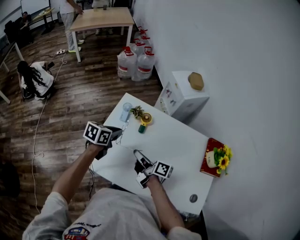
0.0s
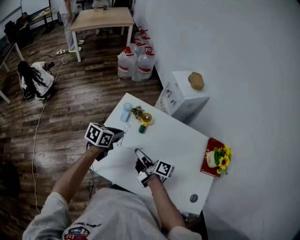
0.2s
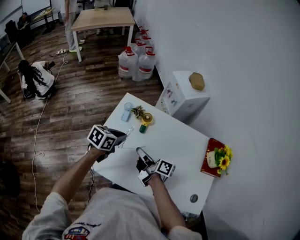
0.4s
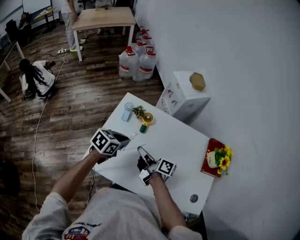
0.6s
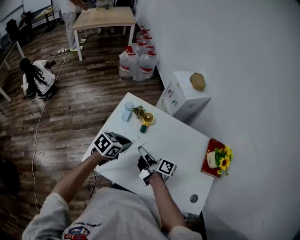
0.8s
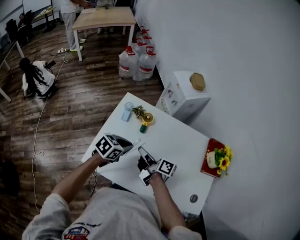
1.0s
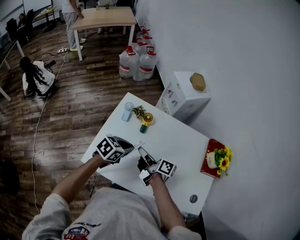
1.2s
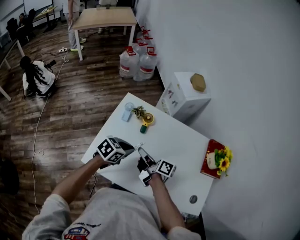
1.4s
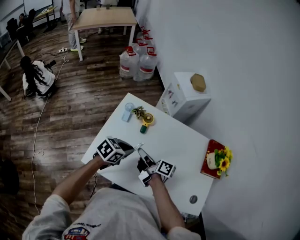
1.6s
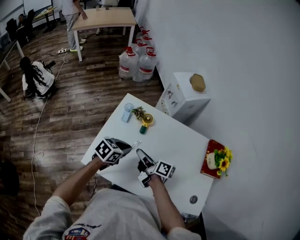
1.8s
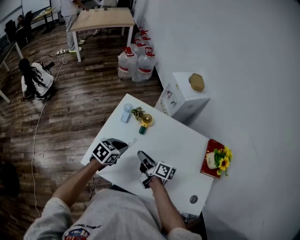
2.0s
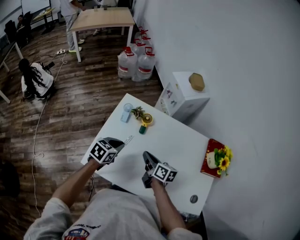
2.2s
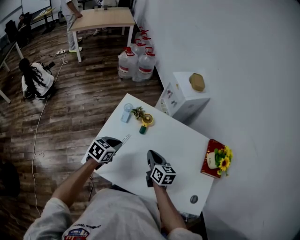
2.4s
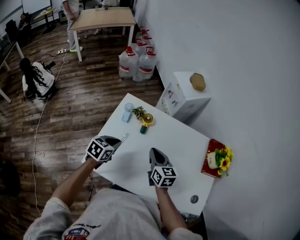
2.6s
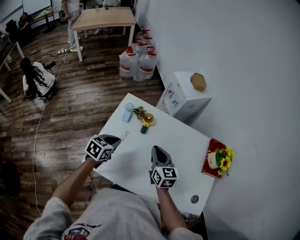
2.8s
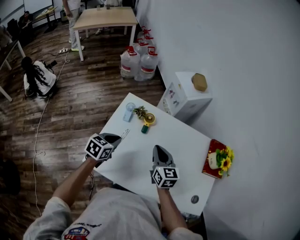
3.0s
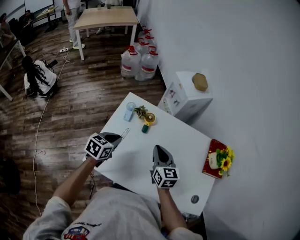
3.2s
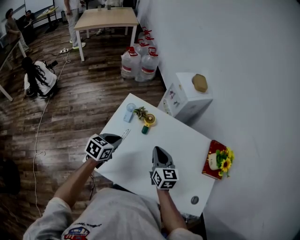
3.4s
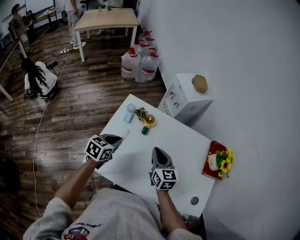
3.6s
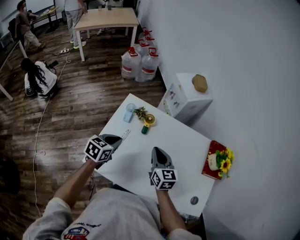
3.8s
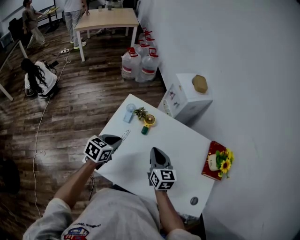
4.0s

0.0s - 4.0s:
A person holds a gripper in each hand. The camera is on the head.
0.0s - 1.4s: The left gripper travels to the right and backward by roughly 10 cm, and swivels some 20 degrees.
1.4s - 2.6s: The left gripper is displaced to the left by roughly 10 cm, while the right gripper moves some 5 cm, and rotates around the line of its fingers by roughly 50 degrees, counterclockwise from behind.
2.6s - 4.0s: The grippers move only a little.

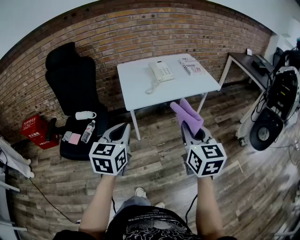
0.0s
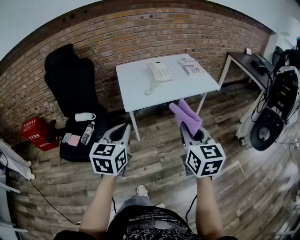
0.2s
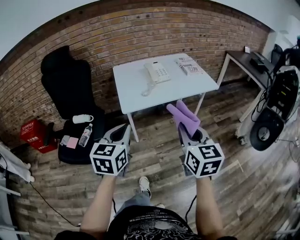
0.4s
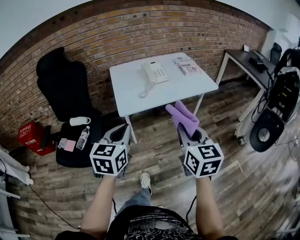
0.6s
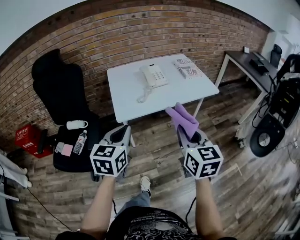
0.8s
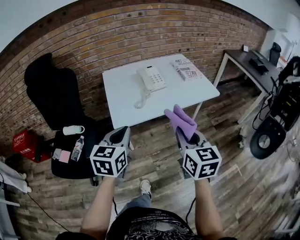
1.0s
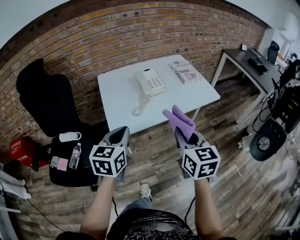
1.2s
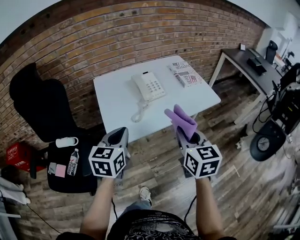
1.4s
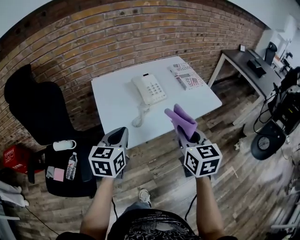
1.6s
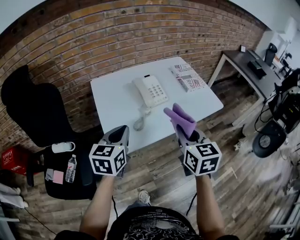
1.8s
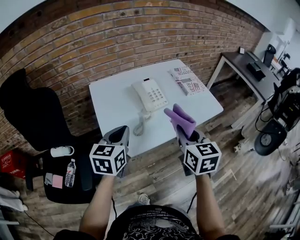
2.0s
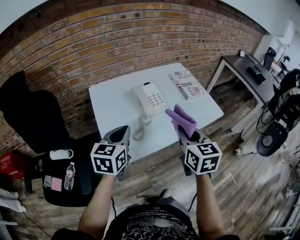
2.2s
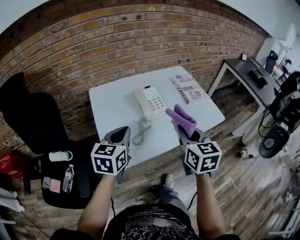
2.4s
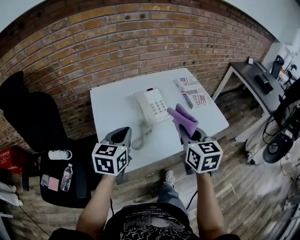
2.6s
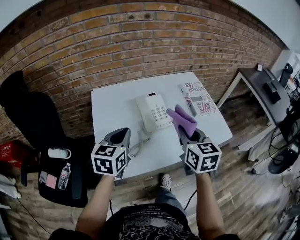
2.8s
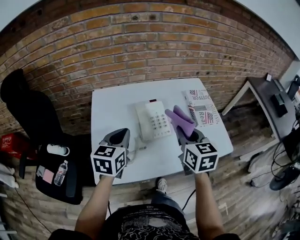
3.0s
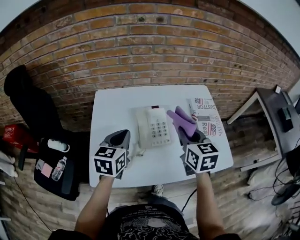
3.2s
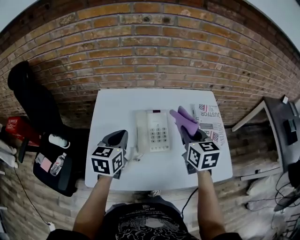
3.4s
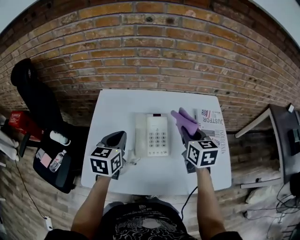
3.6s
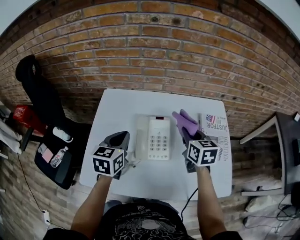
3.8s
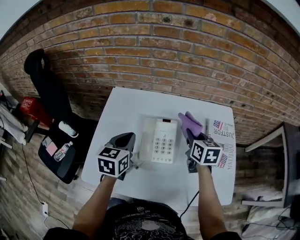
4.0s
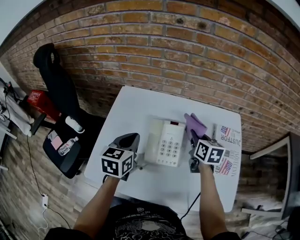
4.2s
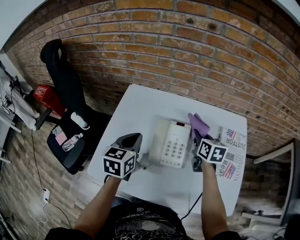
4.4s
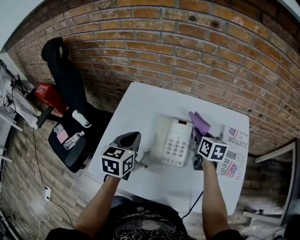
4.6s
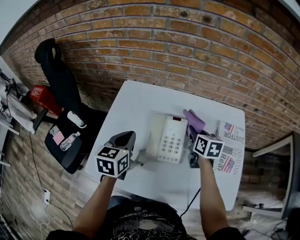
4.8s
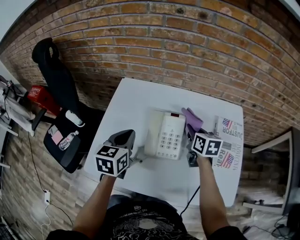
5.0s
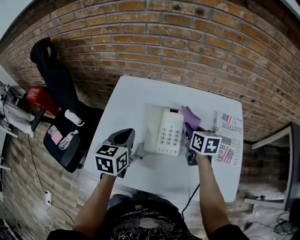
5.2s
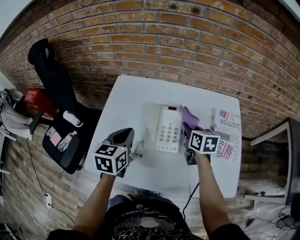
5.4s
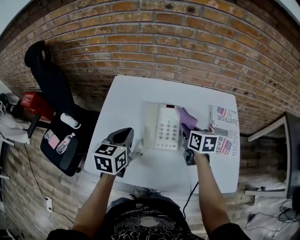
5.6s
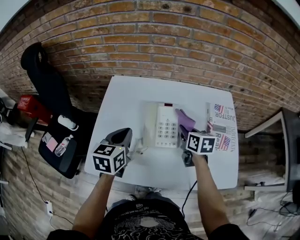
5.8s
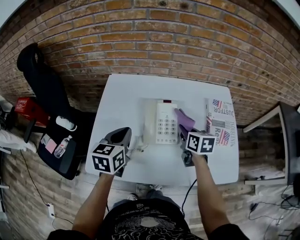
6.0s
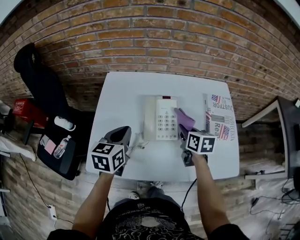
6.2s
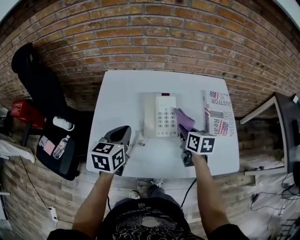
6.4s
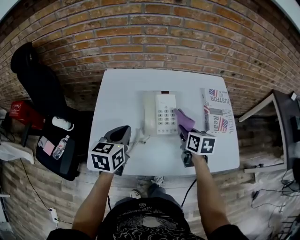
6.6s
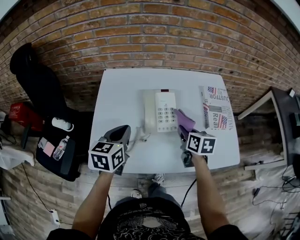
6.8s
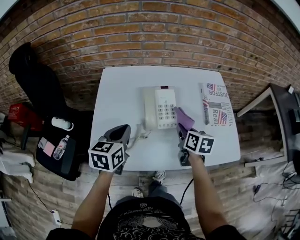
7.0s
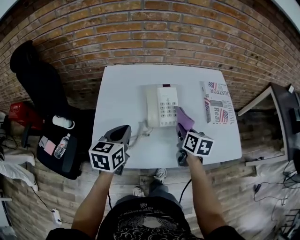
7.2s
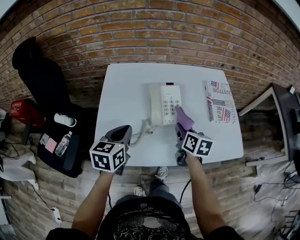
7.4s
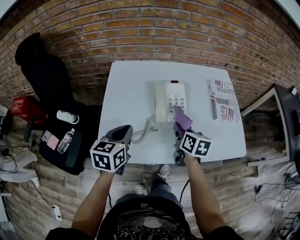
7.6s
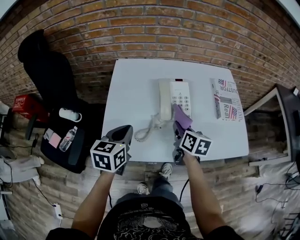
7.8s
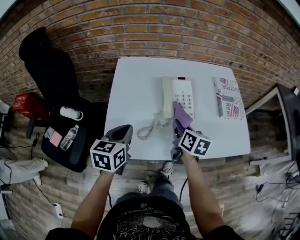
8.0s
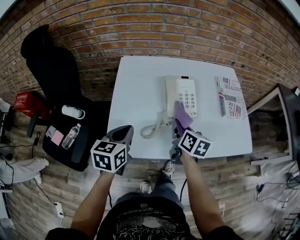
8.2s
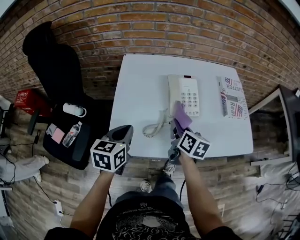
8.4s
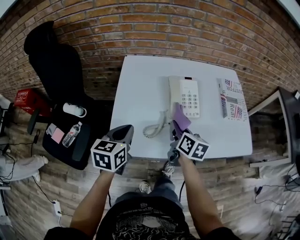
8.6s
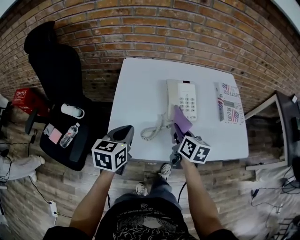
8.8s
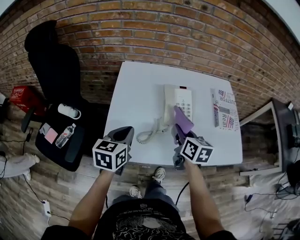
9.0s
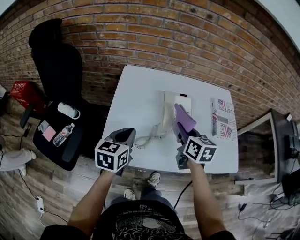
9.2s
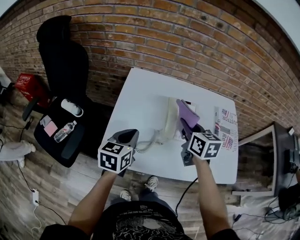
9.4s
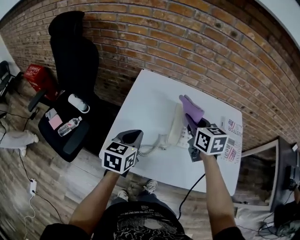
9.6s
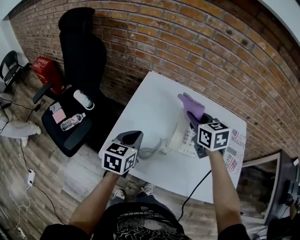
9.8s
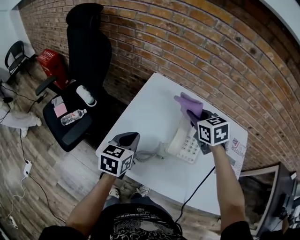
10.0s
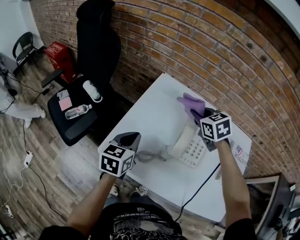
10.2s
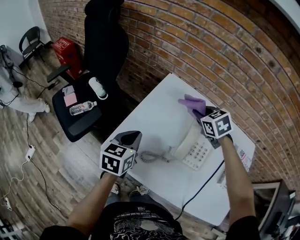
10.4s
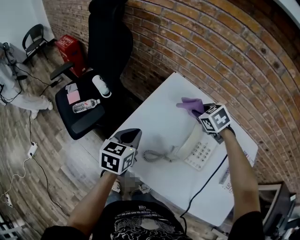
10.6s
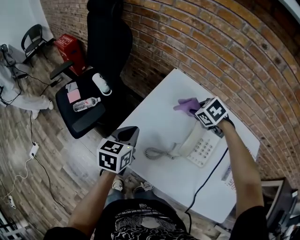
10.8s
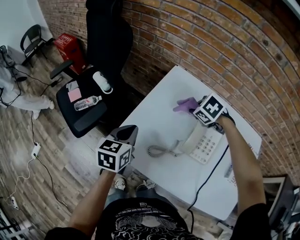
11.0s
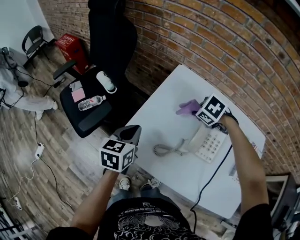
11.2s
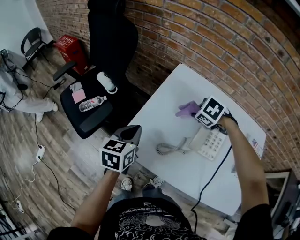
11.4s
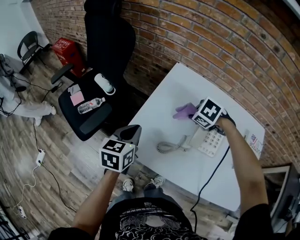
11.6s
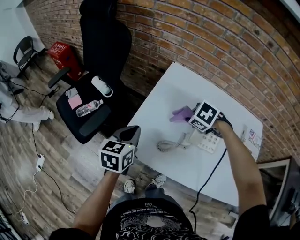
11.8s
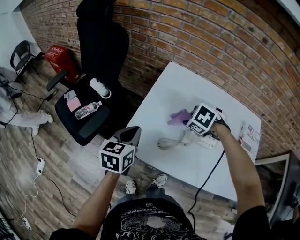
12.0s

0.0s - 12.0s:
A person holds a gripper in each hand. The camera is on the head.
0.0s - 1.6s: Both grippers move forward, roughly 30 cm.
1.6s - 3.0s: The two grippers go about 25 cm forward.
3.0s - 4.4s: The left gripper goes roughly 5 cm forward, and turns by about 20 degrees, while the right gripper travels forward and downward by approximately 25 cm, and rotates some 20 degrees.
4.4s - 6.0s: The right gripper is displaced backward by some 10 cm.
6.0s - 7.6s: The right gripper is displaced backward and to the left by approximately 10 cm. Meanwhile the left gripper travels backward by roughly 10 cm.
7.6s - 9.0s: The right gripper changes place by some 5 cm.
9.0s - 10.4s: The right gripper shifts by some 25 cm, and rotates around the line of its fingers by roughly 60 degrees, counterclockwise from behind, while the left gripper changes its angle by some 30 degrees.
10.4s - 12.0s: The left gripper changes place by about 10 cm. Meanwhile the right gripper shifts by about 15 cm, and swivels approximately 30 degrees.

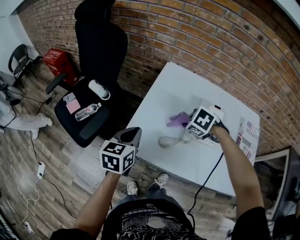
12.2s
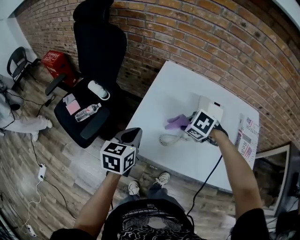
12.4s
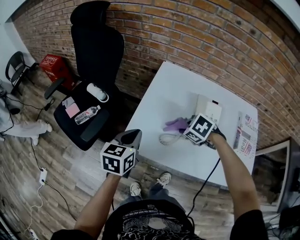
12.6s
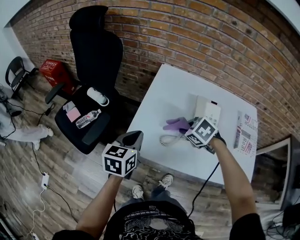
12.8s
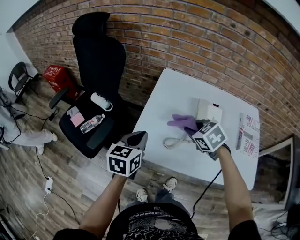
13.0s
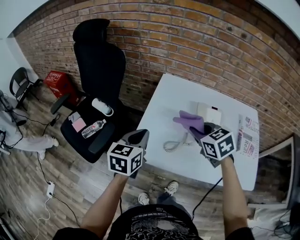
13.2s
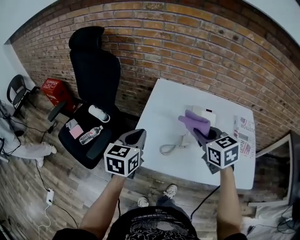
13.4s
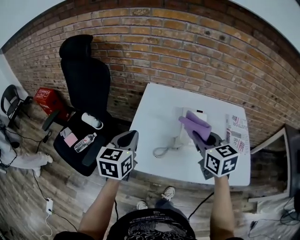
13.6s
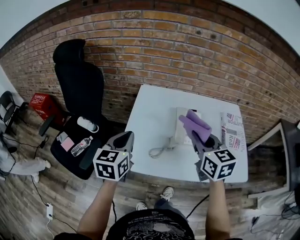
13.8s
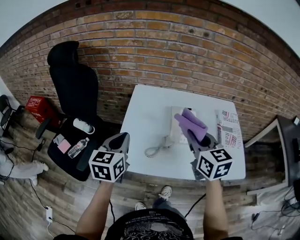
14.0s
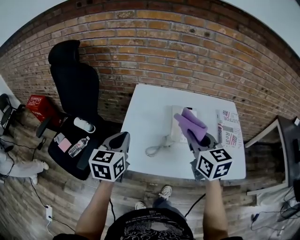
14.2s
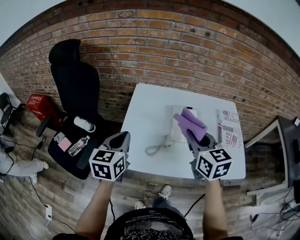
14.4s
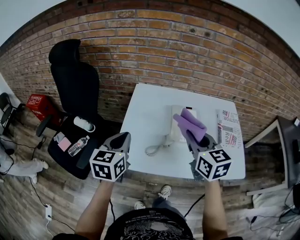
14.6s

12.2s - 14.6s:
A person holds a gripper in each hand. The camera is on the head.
12.2s - 13.4s: The right gripper travels upward by about 15 cm, and tilts its fingers roughly 40 degrees upward; the left gripper is displaced upward by about 10 cm.
13.4s - 14.6s: The right gripper ends up approximately 10 cm from where it was, and changes its angle by about 20 degrees.

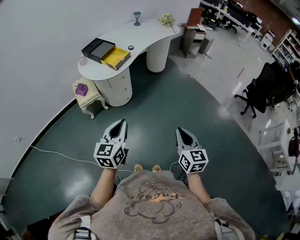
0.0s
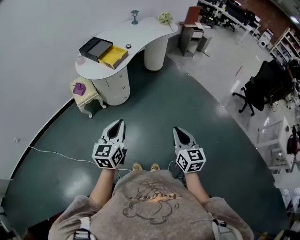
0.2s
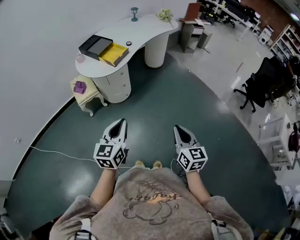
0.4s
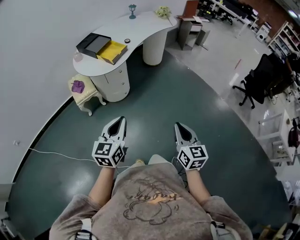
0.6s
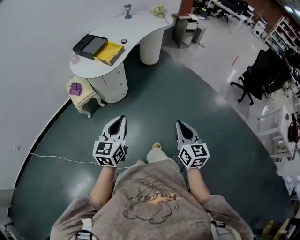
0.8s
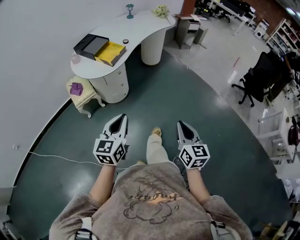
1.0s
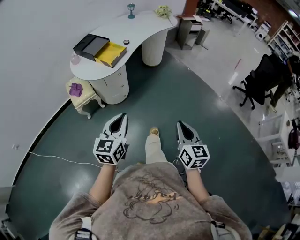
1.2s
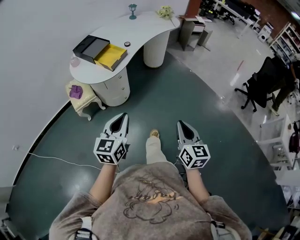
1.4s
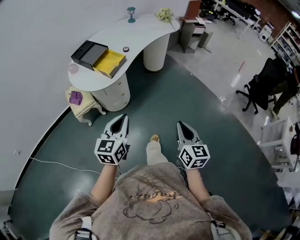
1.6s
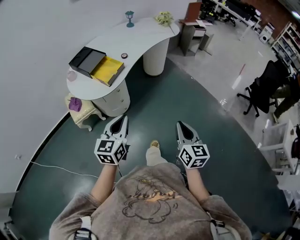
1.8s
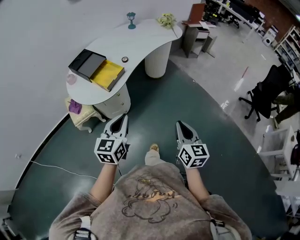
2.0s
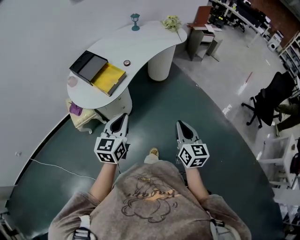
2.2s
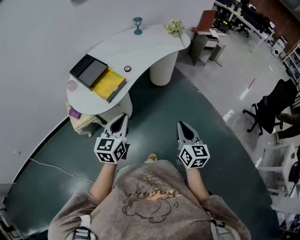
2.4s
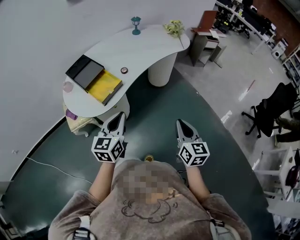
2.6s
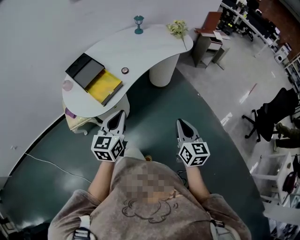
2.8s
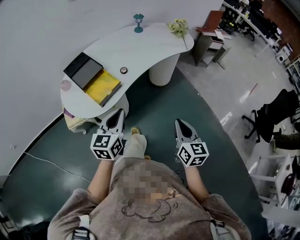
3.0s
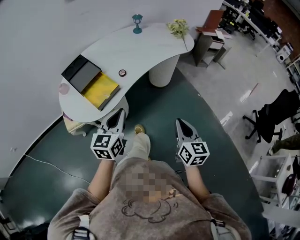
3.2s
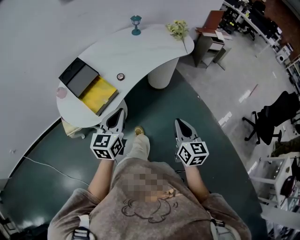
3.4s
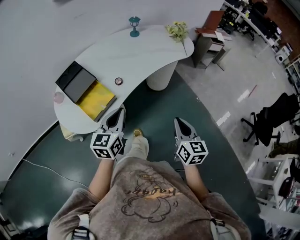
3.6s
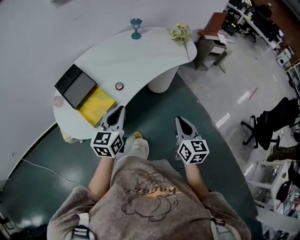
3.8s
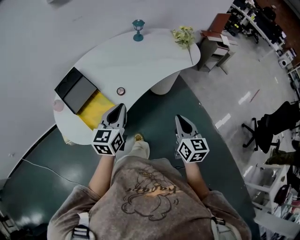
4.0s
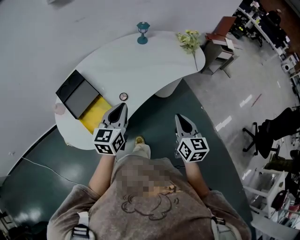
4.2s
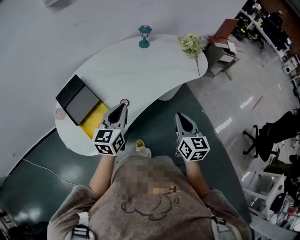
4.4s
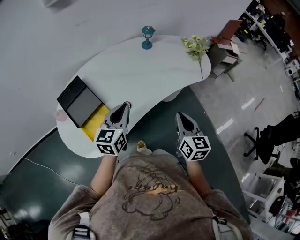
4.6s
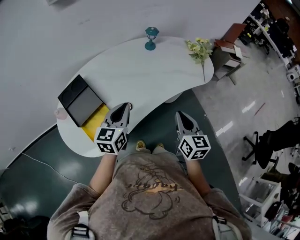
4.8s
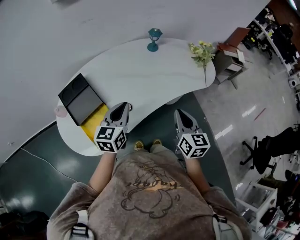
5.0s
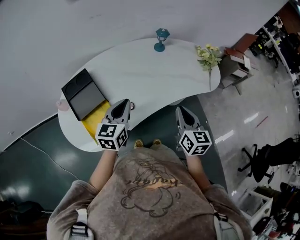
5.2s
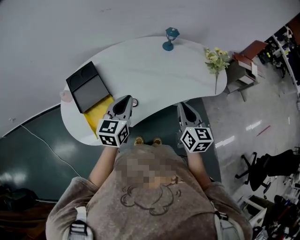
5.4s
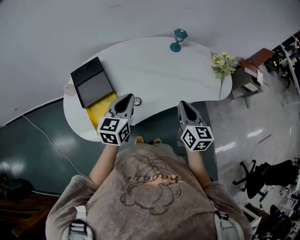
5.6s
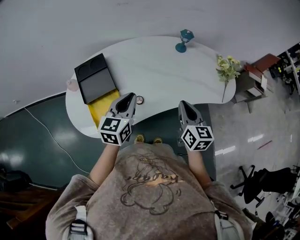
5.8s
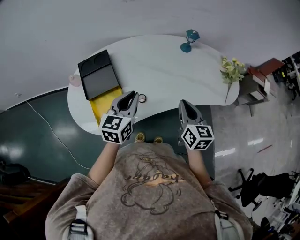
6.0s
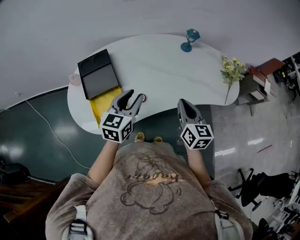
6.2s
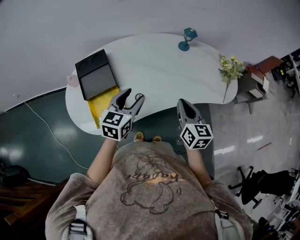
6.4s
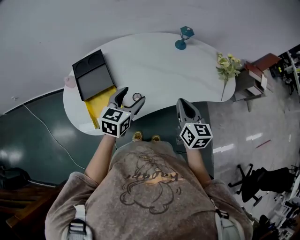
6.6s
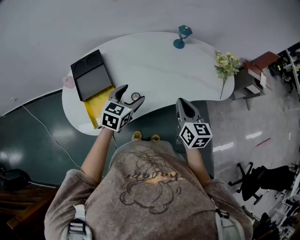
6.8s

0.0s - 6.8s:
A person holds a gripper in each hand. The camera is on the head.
0.0s - 1.4s: The grippers both shift forward by about 10 cm.
1.4s - 2.8s: Both grippers travel together forward, about 30 cm.
2.8s - 4.0s: Both grippers move forward, some 20 cm.
4.0s - 5.4s: The right gripper shifts about 20 cm forward. The left gripper goes roughly 15 cm forward.
5.4s - 6.8s: The left gripper goes about 5 cm downward, and opens.
